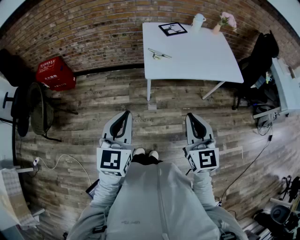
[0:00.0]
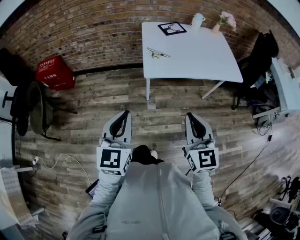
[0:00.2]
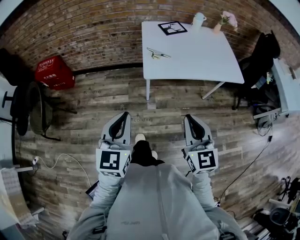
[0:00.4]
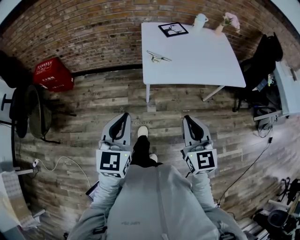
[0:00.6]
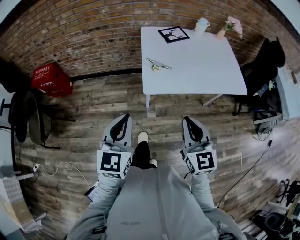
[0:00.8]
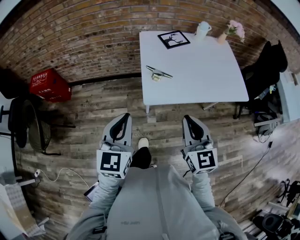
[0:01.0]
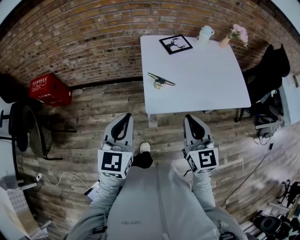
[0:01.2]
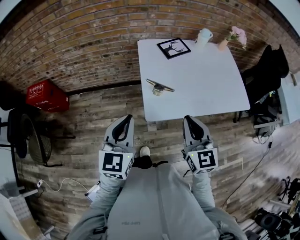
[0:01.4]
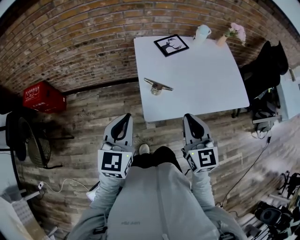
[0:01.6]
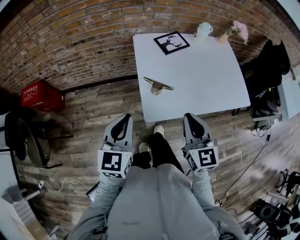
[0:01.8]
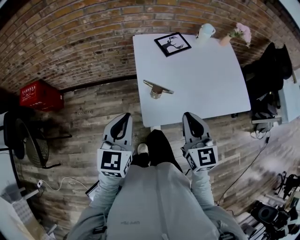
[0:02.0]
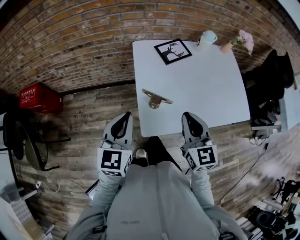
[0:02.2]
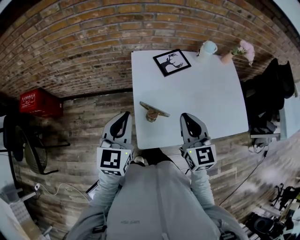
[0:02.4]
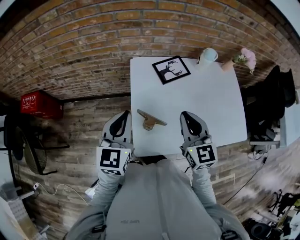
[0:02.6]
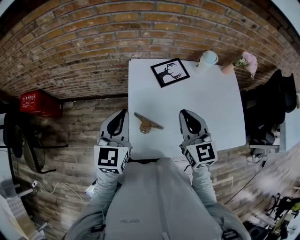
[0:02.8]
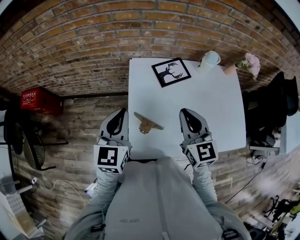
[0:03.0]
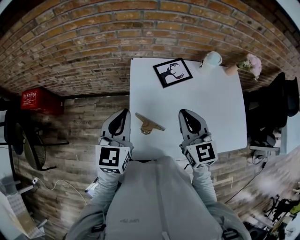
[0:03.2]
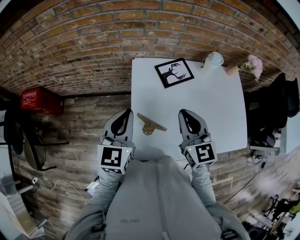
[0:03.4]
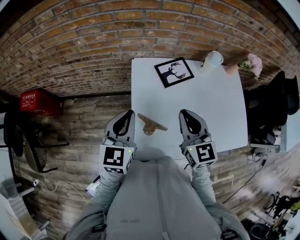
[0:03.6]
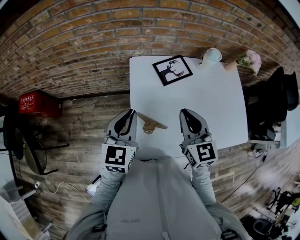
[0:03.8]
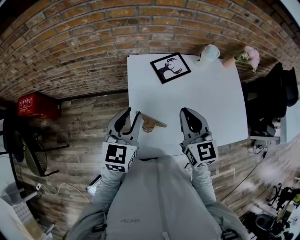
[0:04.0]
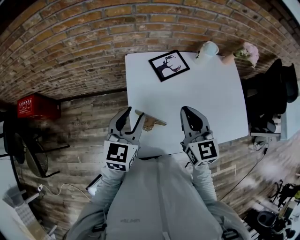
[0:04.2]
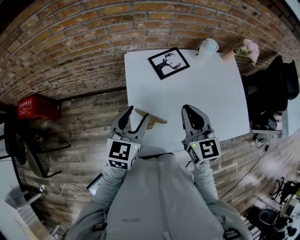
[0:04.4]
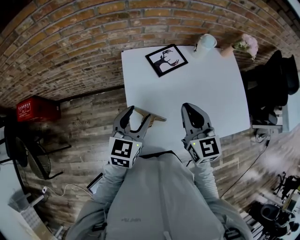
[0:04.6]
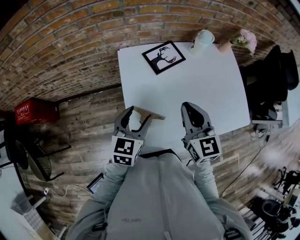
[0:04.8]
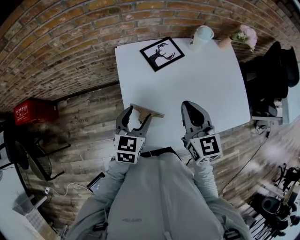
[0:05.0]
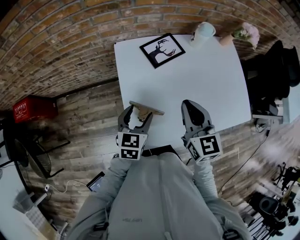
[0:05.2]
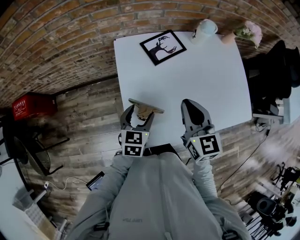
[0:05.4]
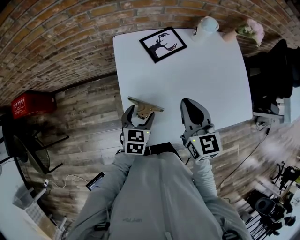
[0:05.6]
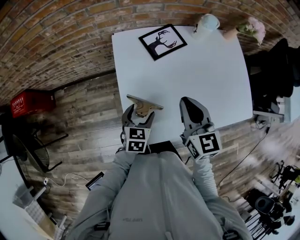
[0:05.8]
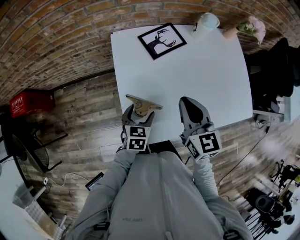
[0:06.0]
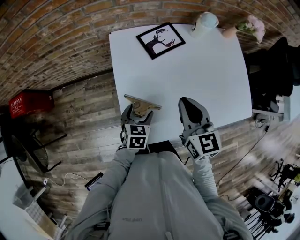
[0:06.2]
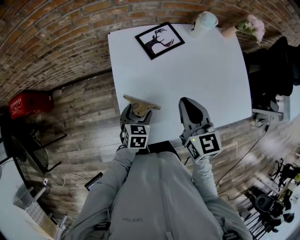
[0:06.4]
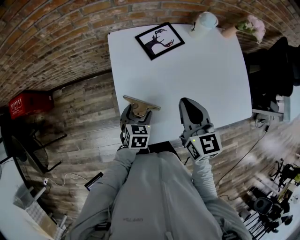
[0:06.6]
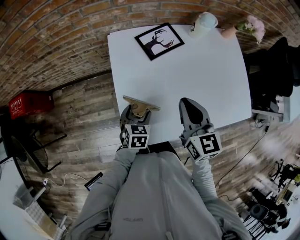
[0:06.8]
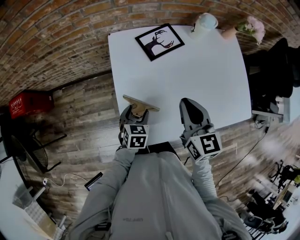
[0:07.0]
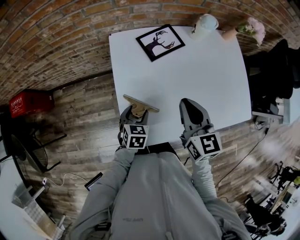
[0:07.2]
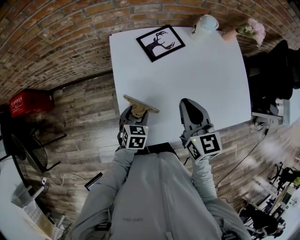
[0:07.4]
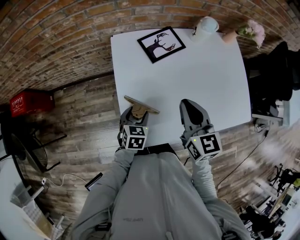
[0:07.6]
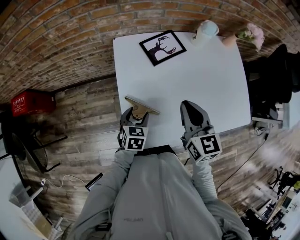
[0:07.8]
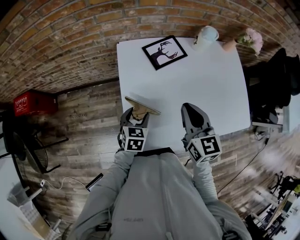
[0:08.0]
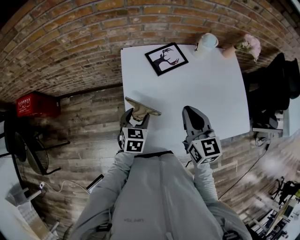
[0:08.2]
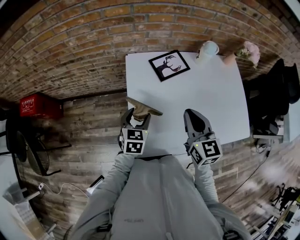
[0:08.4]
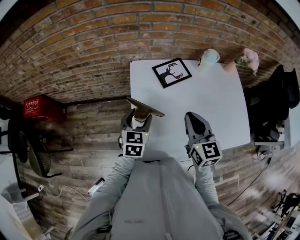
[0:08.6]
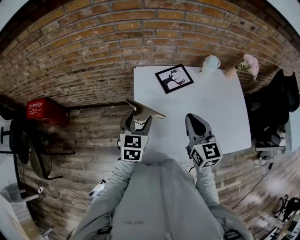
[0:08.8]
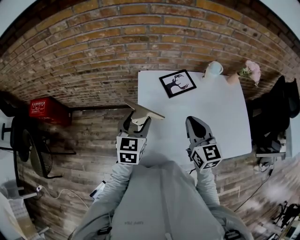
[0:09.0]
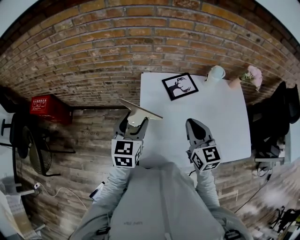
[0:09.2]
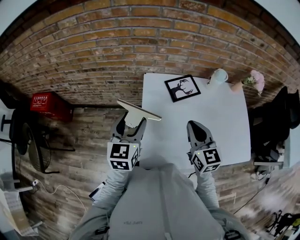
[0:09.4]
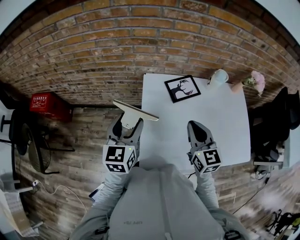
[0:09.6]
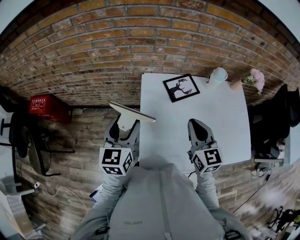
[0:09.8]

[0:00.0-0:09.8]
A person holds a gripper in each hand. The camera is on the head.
0:00.0 to 0:01.4: The two grippers go approximately 25 cm forward.
0:01.4 to 0:02.8: The two grippers go some 25 cm forward.
0:02.8 to 0:04.2: The left gripper changes place by some 5 cm, and opens.
0:04.2 to 0:05.6: The left gripper shifts about 15 cm downward, rotates approximately 20 degrees, and opens up. The right gripper ends up some 5 cm from where it was.
0:05.6 to 0:07.0: The left gripper heads downward, covering approximately 5 cm.
0:07.0 to 0:08.4: The left gripper heads upward, covering approximately 10 cm.
0:08.4 to 0:09.8: The left gripper is displaced upward and to the left by approximately 20 cm, and rotates approximately 20 degrees. The right gripper shifts by approximately 5 cm.

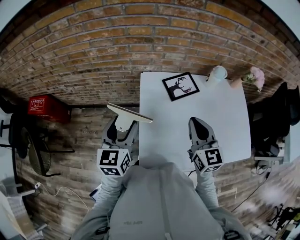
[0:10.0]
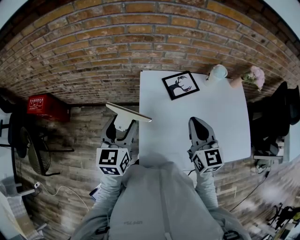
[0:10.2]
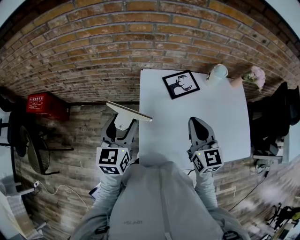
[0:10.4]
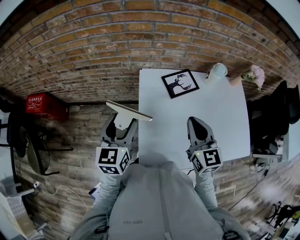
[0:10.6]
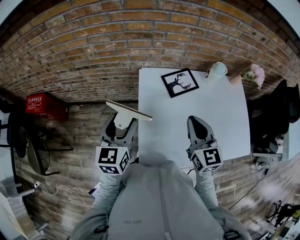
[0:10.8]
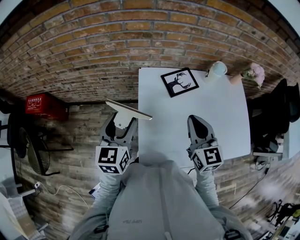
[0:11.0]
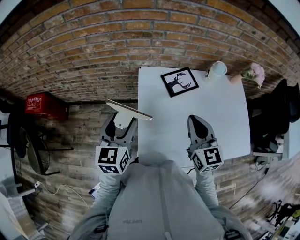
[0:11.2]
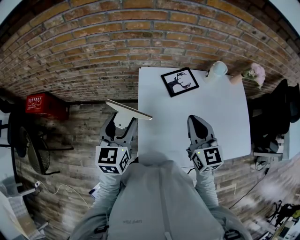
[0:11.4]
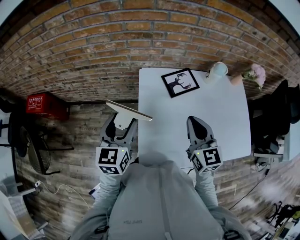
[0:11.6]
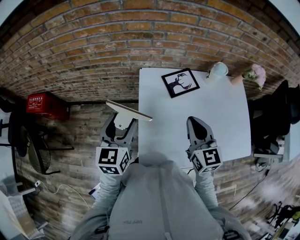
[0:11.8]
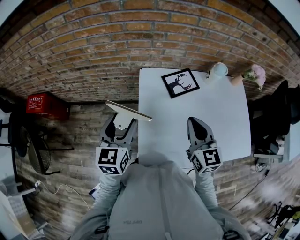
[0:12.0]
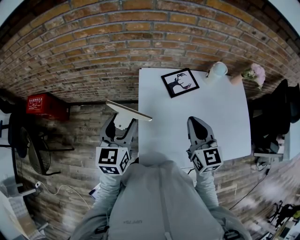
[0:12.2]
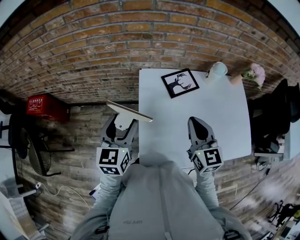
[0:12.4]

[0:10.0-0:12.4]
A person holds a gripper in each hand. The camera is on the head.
0:10.0 to 0:12.4: The two grippers keep their place.

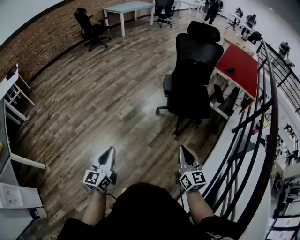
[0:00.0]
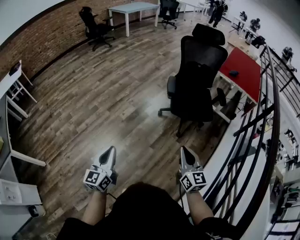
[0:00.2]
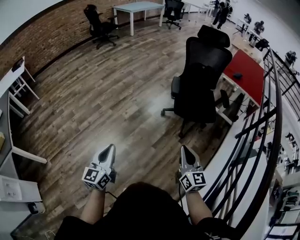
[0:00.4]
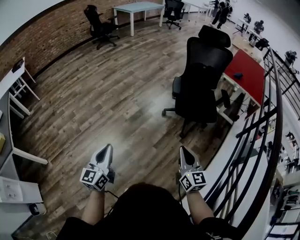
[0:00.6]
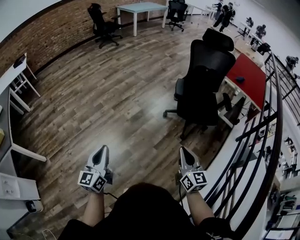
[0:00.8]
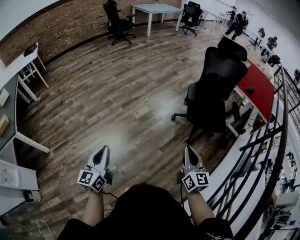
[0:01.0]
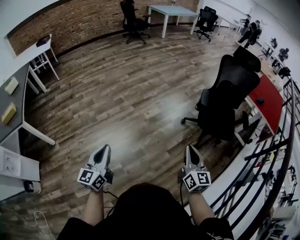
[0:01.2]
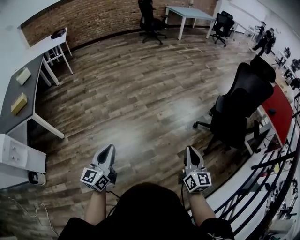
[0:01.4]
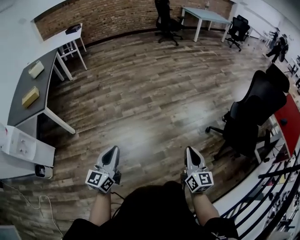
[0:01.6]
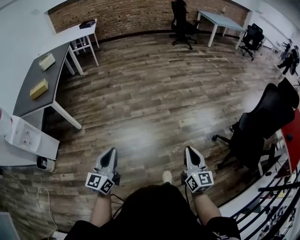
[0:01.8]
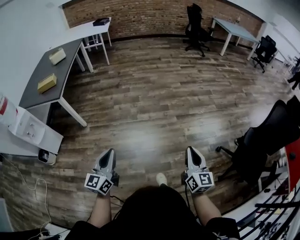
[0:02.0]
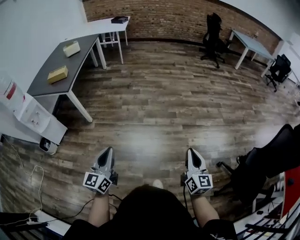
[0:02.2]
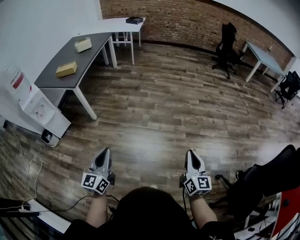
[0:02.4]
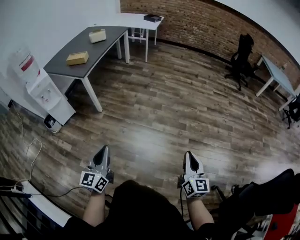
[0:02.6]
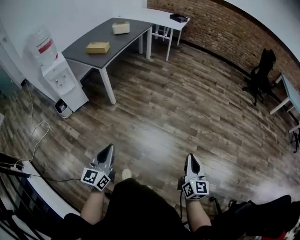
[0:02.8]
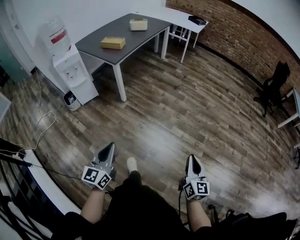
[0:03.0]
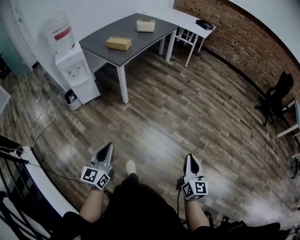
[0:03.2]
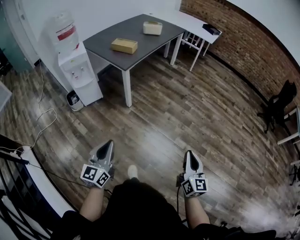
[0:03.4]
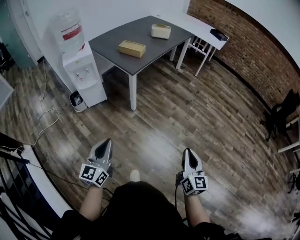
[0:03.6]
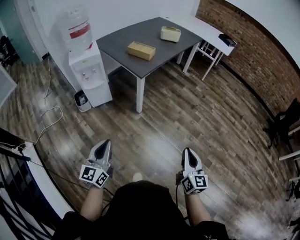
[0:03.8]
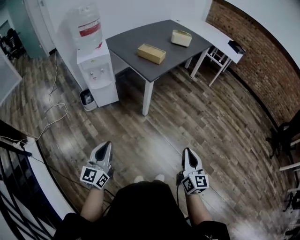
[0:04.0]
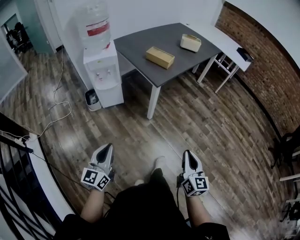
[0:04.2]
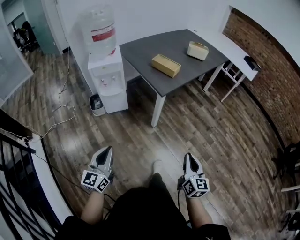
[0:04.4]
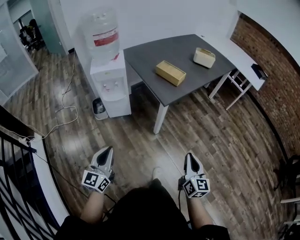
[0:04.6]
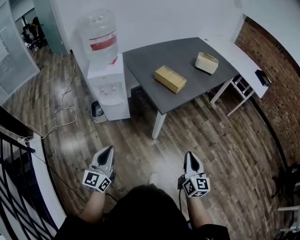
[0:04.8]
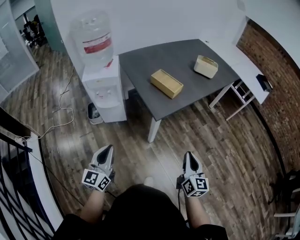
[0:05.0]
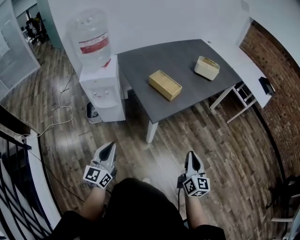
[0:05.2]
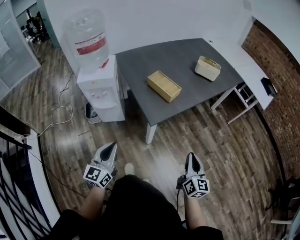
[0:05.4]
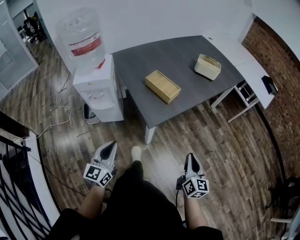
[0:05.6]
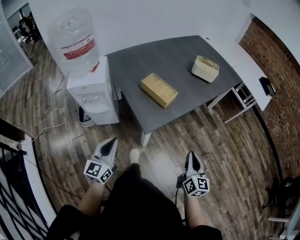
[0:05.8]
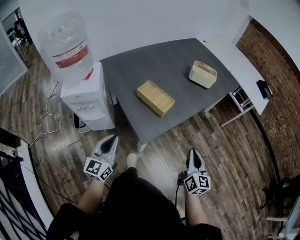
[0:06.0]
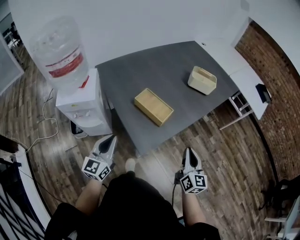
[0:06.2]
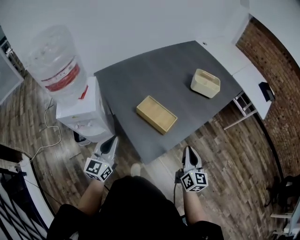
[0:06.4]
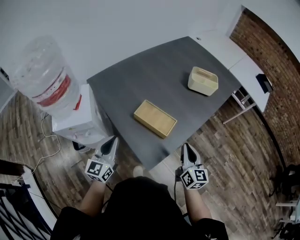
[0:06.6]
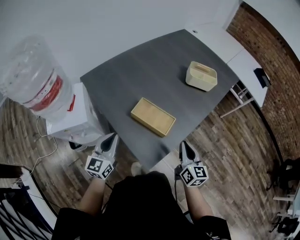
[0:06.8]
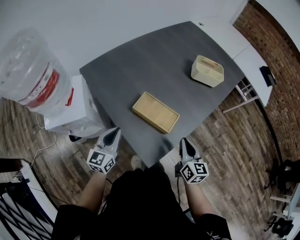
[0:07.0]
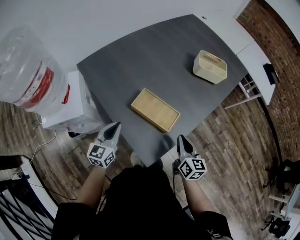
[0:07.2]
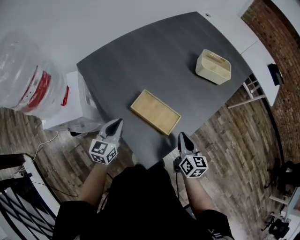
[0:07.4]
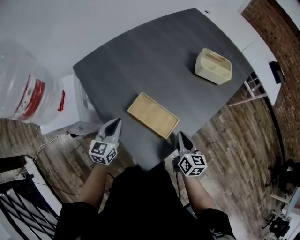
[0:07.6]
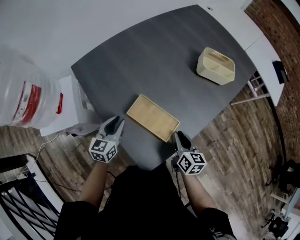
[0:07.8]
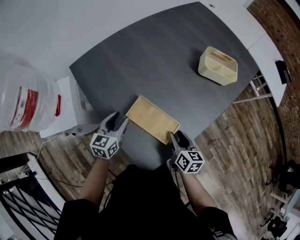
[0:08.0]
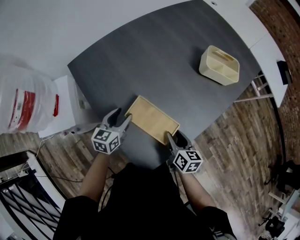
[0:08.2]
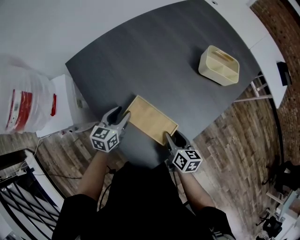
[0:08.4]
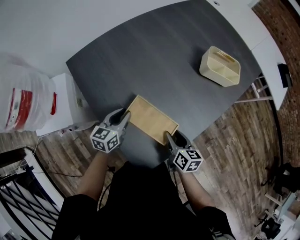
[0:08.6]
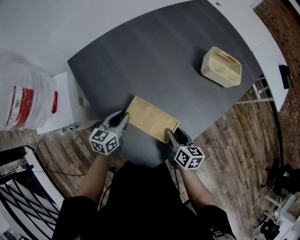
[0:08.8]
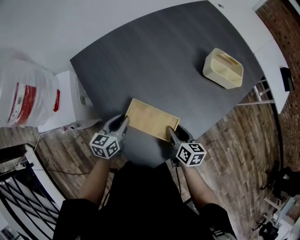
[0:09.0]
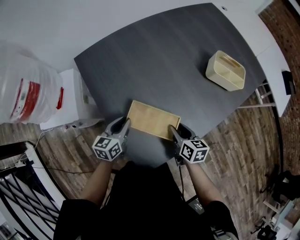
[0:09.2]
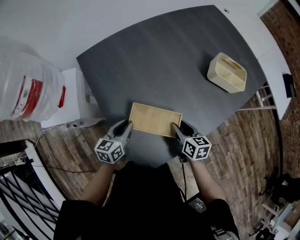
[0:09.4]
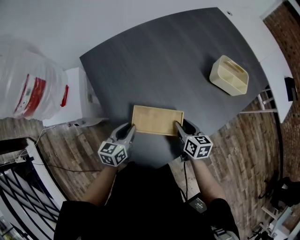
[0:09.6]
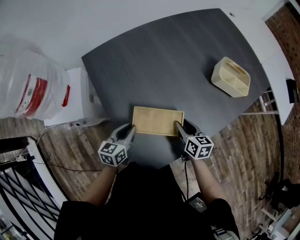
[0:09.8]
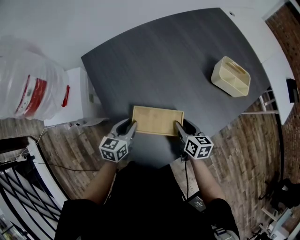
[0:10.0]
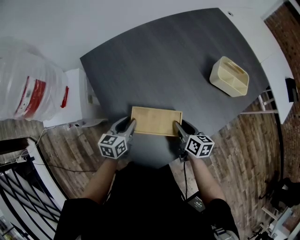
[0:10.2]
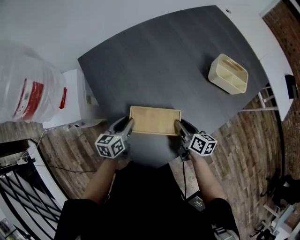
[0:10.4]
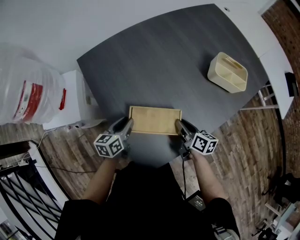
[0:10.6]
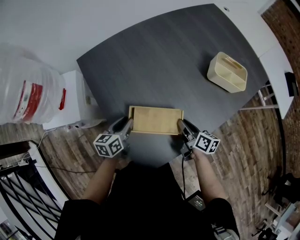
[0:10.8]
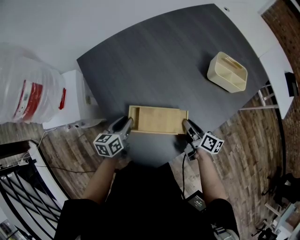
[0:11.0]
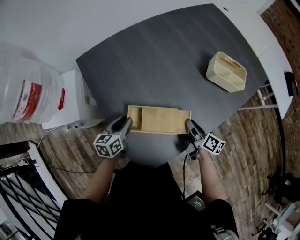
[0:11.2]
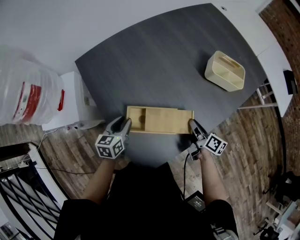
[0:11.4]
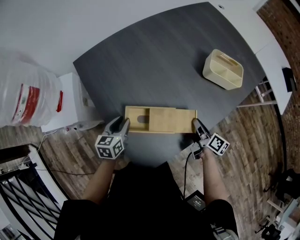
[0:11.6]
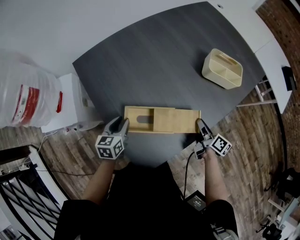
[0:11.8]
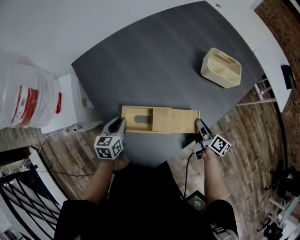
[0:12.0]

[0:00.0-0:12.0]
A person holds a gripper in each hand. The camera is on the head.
0:00.0 to 0:01.6: The grippers both shift to the left by roughly 30 cm. The left gripper rotates roughly 20 degrees, while the right gripper rotates some 20 degrees.
0:01.6 to 0:03.0: The right gripper moves about 35 cm, and rotates roughly 40 degrees; the left gripper ends up approximately 15 cm from where it was, and swivels about 50 degrees.
0:03.0 to 0:04.4: The right gripper goes some 40 cm forward and to the left, and rotates some 20 degrees; the left gripper shifts some 30 cm to the left and forward, and turns by approximately 20 degrees.
0:04.4 to 0:06.0: Both grippers move forward, roughly 35 cm.
0:06.0 to 0:07.6: The right gripper shifts approximately 25 cm forward, to the left and downward, and turns by roughly 20 degrees. The left gripper shifts some 25 cm forward and downward, and rotates some 20 degrees.
0:07.6 to 0:09.0: The right gripper ends up some 5 cm from where it was, and opens its fingers, while the left gripper opens, then closes once more.
0:09.0 to 0:10.4: The grippers make only small movements.
0:10.4 to 0:12.0: The right gripper travels to the right by about 15 cm, and swivels roughly 20 degrees.
